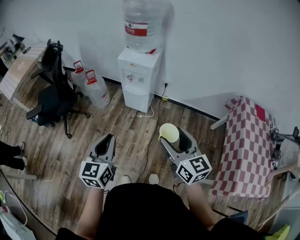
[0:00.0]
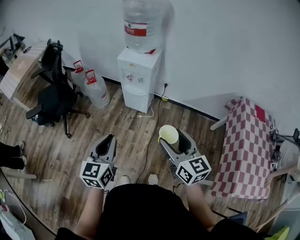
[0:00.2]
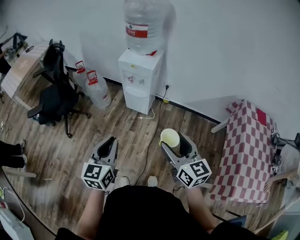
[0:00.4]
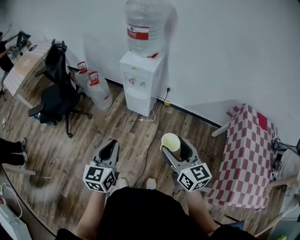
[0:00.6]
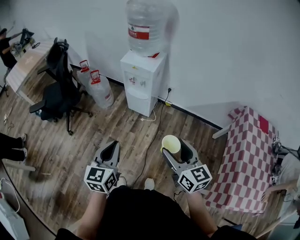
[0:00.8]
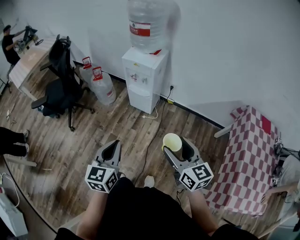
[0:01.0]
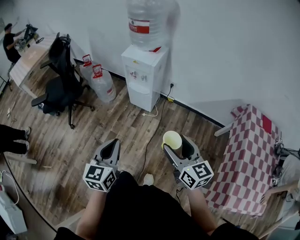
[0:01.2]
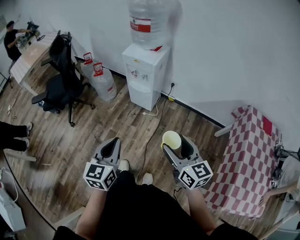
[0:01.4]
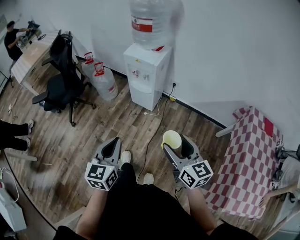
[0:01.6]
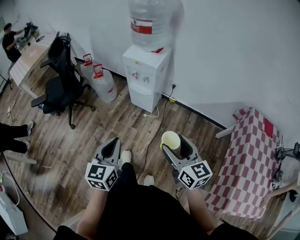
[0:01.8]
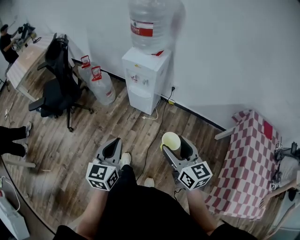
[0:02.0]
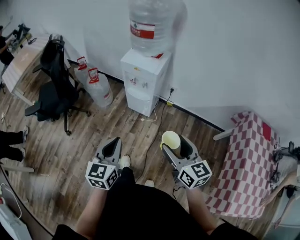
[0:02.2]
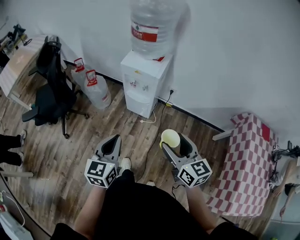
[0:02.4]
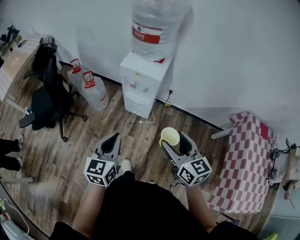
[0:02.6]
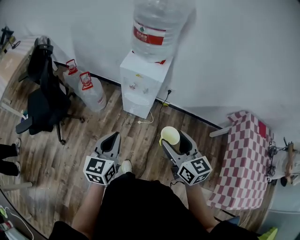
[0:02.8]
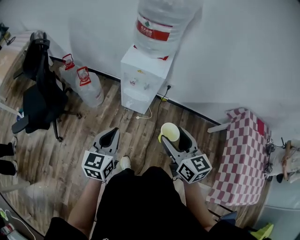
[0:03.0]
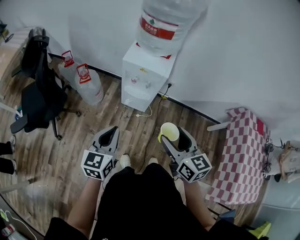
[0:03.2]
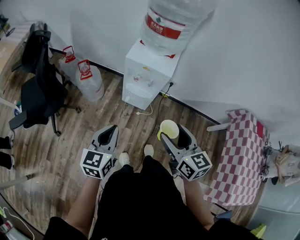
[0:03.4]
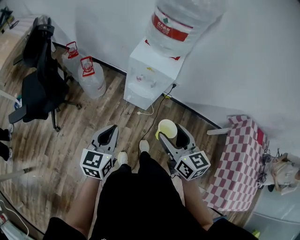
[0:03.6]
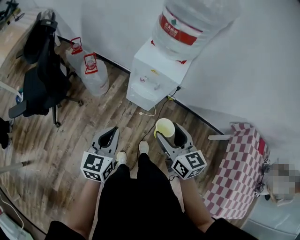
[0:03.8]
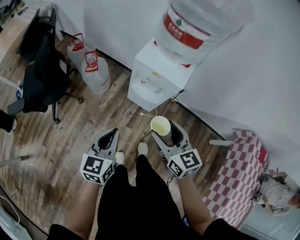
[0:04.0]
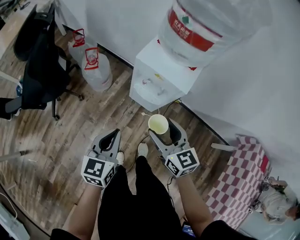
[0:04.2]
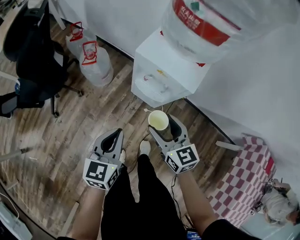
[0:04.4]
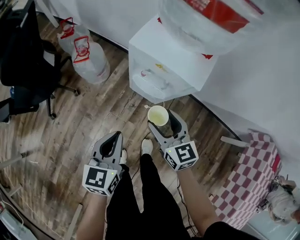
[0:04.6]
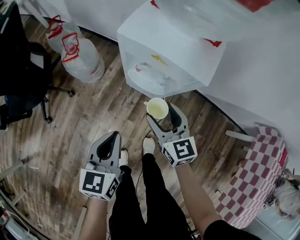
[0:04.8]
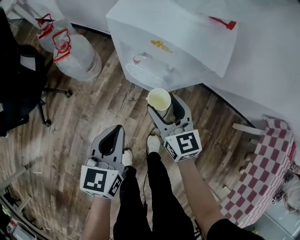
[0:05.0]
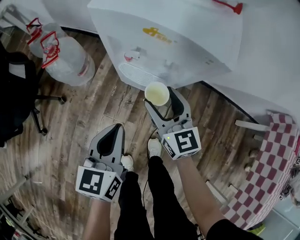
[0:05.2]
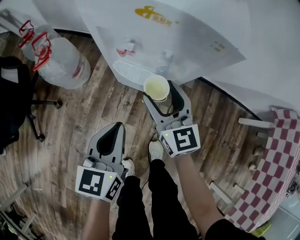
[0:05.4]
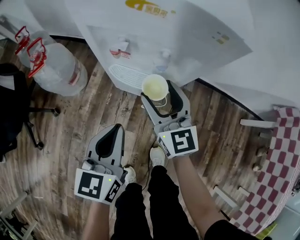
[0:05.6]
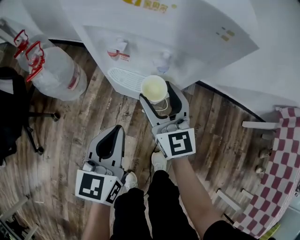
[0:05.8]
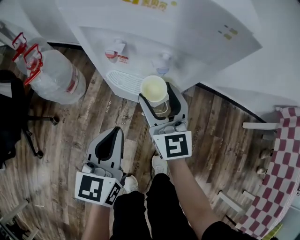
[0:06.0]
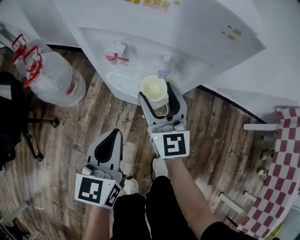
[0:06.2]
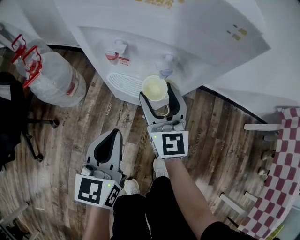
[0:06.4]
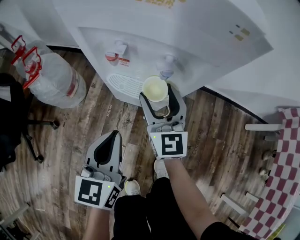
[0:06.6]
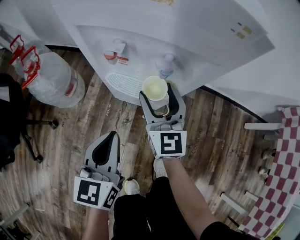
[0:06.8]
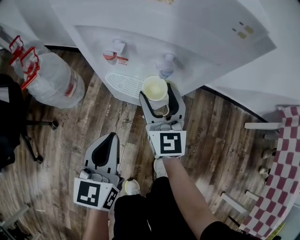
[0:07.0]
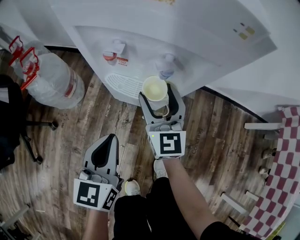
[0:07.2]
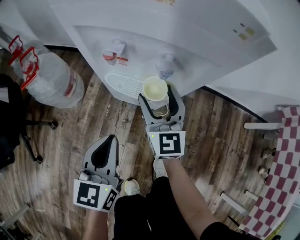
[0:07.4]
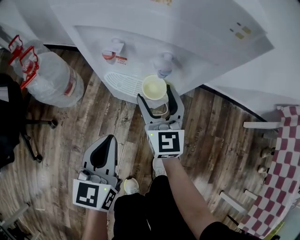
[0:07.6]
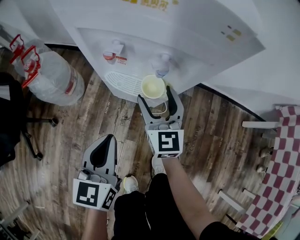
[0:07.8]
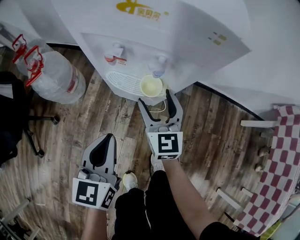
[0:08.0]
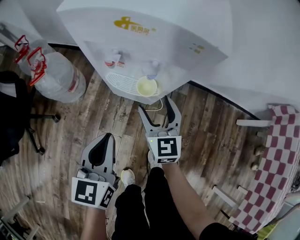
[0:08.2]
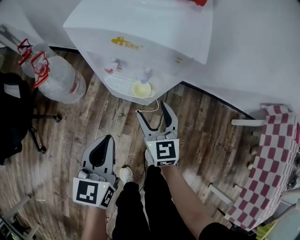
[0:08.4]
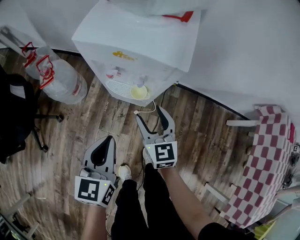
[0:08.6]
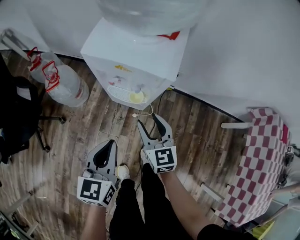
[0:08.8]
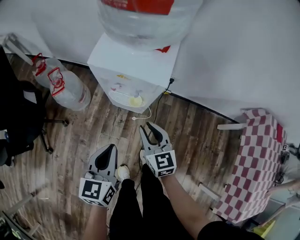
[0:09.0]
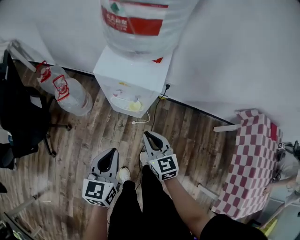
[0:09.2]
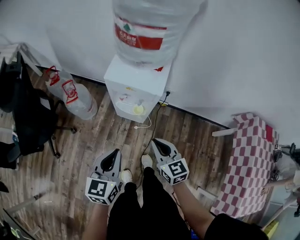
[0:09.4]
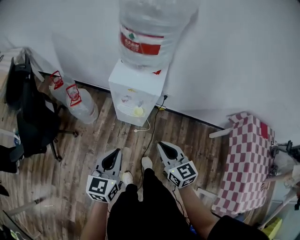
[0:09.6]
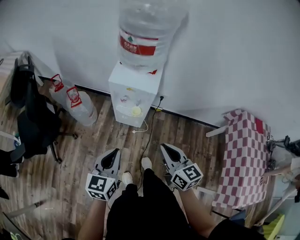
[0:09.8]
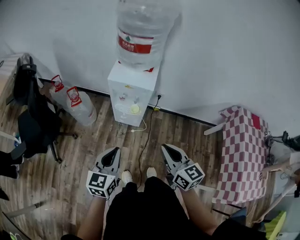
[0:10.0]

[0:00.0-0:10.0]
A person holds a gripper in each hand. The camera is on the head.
0:00.0 to 0:01.4: The two grippers go about 10 cm to the right.
0:01.4 to 0:02.8: The grippers both shift forward and to the left by about 25 cm.
0:02.8 to 0:04.2: The left gripper goes approximately 15 cm forward and downward. Meanwhile the right gripper shifts approximately 25 cm forward, downward and to the left.
0:04.2 to 0:05.8: The right gripper shifts some 35 cm downward and forward, and turns by some 30 degrees; the left gripper is displaced downward by about 30 cm.
0:05.8 to 0:07.2: The right gripper ends up some 5 cm from where it was.
0:07.2 to 0:08.6: The right gripper shifts roughly 15 cm upward and backward; the left gripper shifts roughly 15 cm upward.
0:08.6 to 0:10.0: Both grippers travel together upward and backward, roughly 35 cm. The right gripper closes.

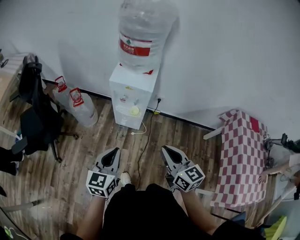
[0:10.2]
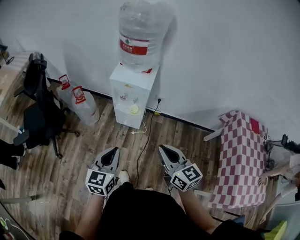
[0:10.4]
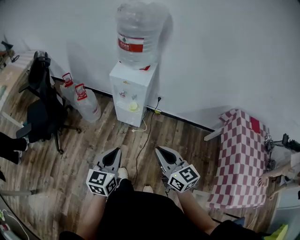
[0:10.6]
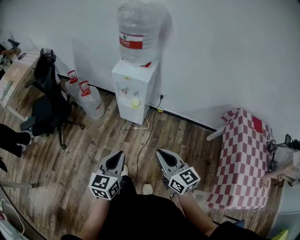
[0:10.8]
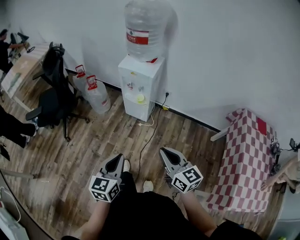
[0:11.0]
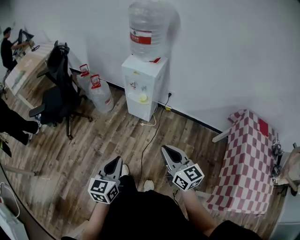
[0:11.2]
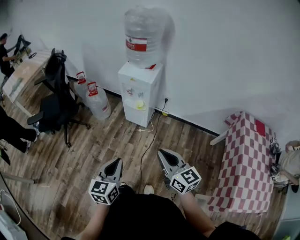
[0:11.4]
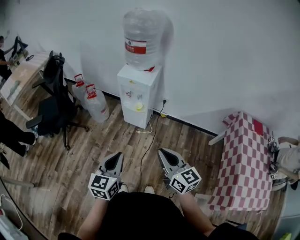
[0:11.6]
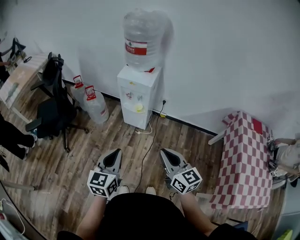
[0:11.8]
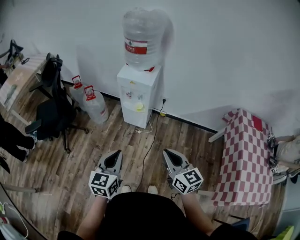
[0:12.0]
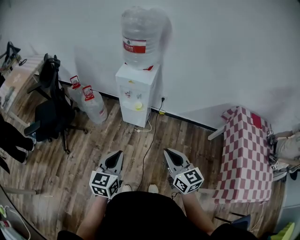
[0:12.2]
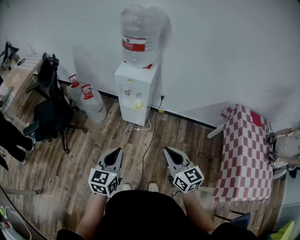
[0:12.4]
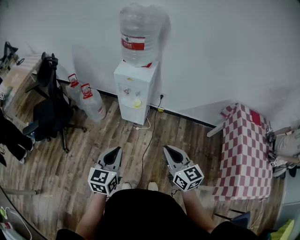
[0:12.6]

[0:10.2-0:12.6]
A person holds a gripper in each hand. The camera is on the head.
0:10.2 to 0:11.4: The grippers both shift backward by roughly 20 cm.
0:11.4 to 0:12.6: The left gripper goes some 5 cm forward.

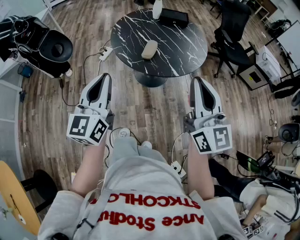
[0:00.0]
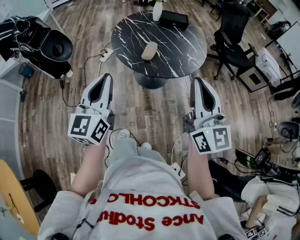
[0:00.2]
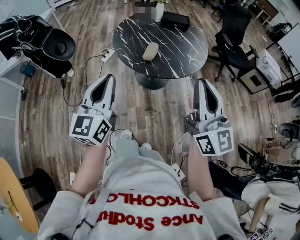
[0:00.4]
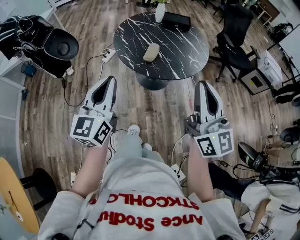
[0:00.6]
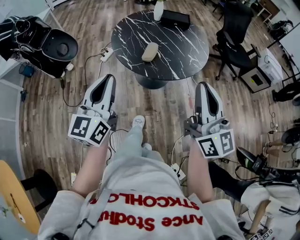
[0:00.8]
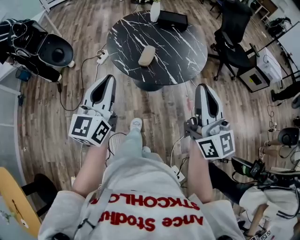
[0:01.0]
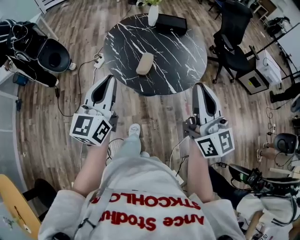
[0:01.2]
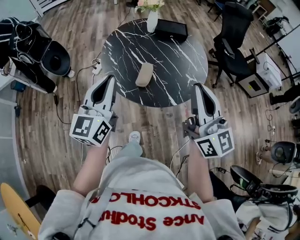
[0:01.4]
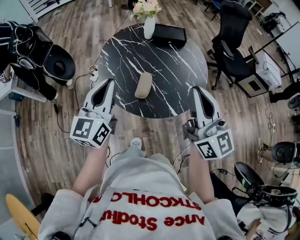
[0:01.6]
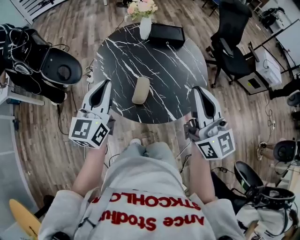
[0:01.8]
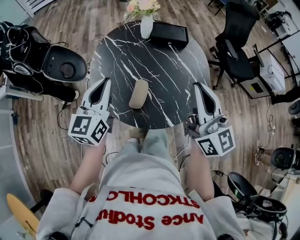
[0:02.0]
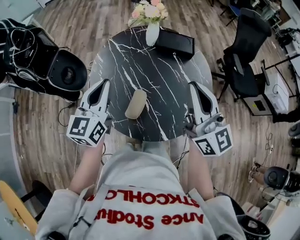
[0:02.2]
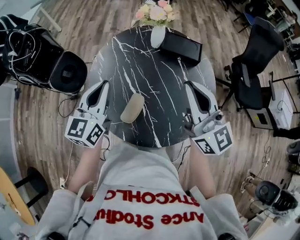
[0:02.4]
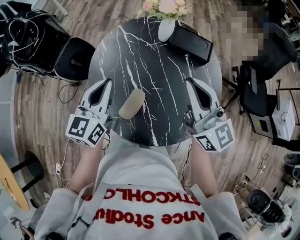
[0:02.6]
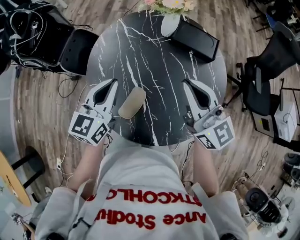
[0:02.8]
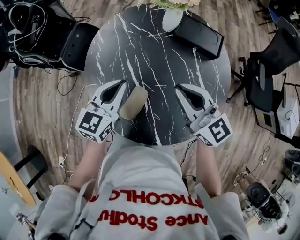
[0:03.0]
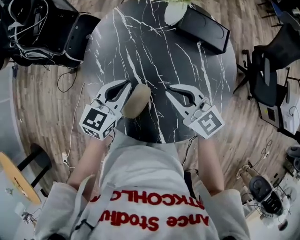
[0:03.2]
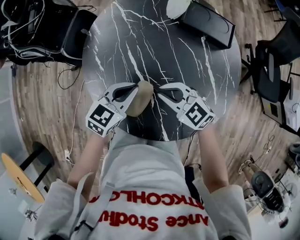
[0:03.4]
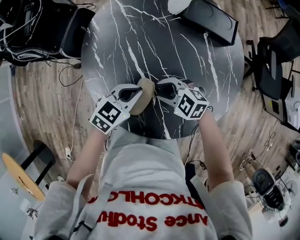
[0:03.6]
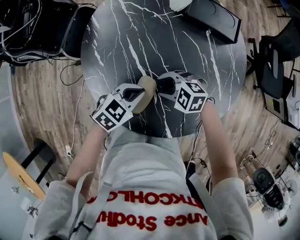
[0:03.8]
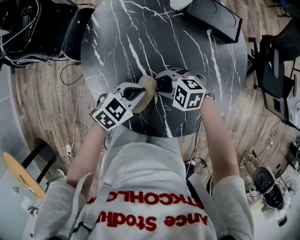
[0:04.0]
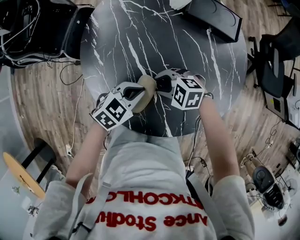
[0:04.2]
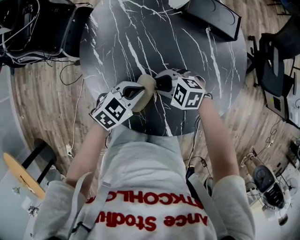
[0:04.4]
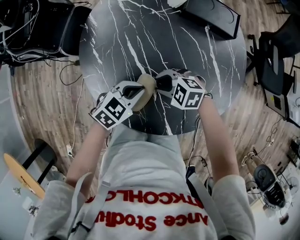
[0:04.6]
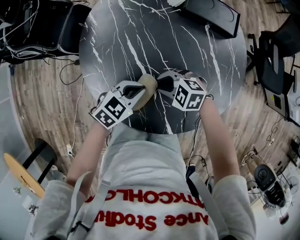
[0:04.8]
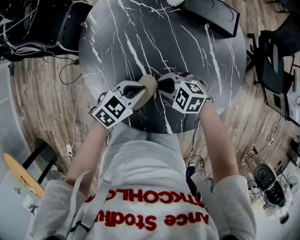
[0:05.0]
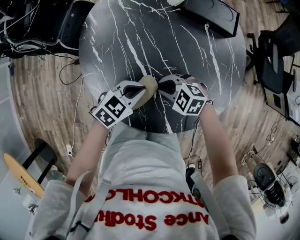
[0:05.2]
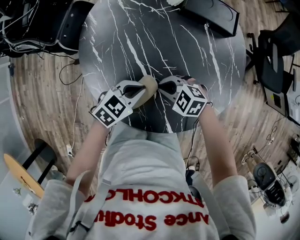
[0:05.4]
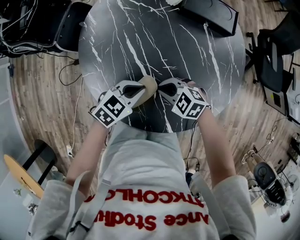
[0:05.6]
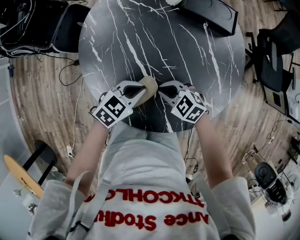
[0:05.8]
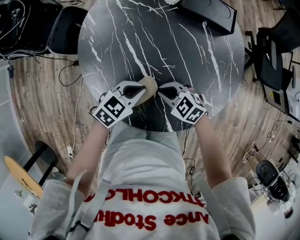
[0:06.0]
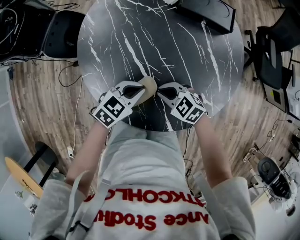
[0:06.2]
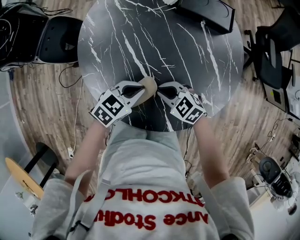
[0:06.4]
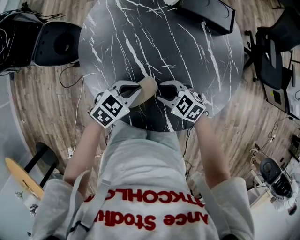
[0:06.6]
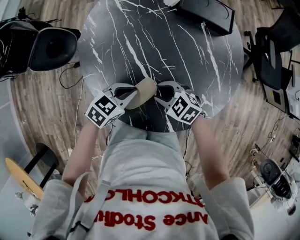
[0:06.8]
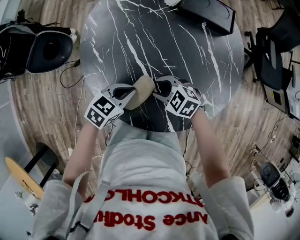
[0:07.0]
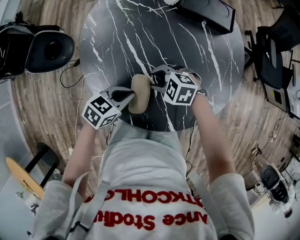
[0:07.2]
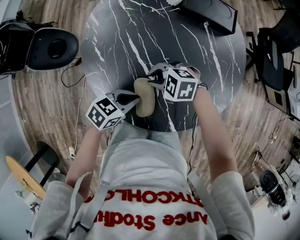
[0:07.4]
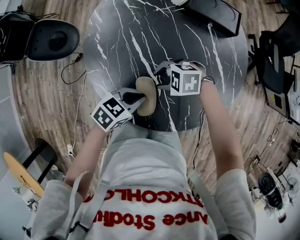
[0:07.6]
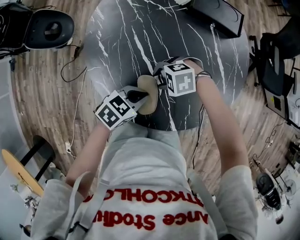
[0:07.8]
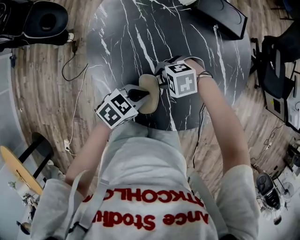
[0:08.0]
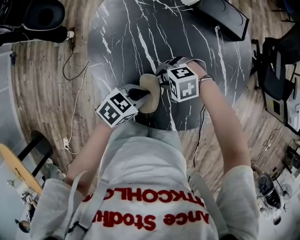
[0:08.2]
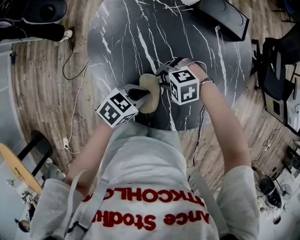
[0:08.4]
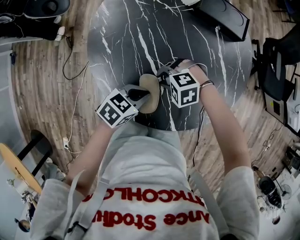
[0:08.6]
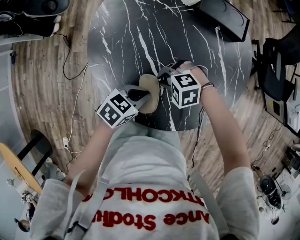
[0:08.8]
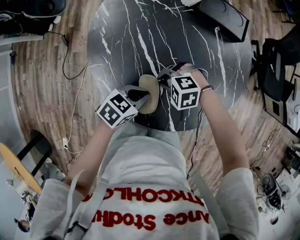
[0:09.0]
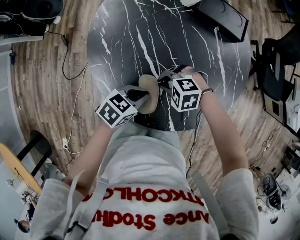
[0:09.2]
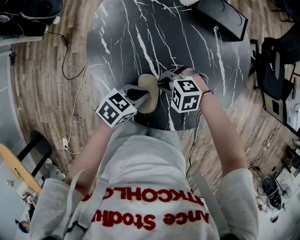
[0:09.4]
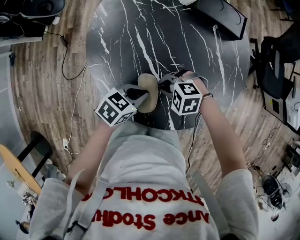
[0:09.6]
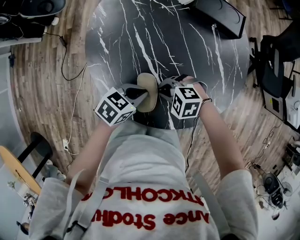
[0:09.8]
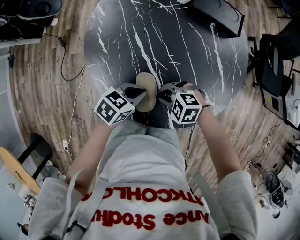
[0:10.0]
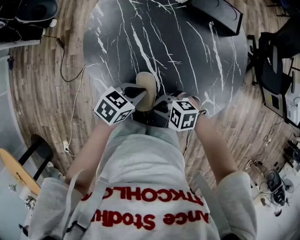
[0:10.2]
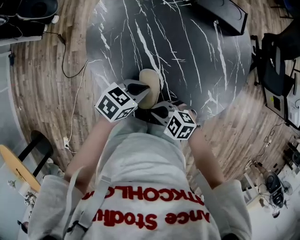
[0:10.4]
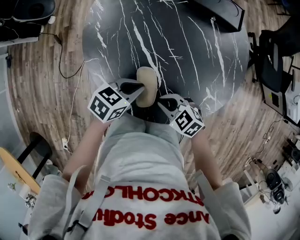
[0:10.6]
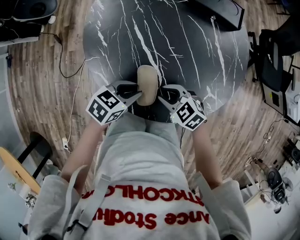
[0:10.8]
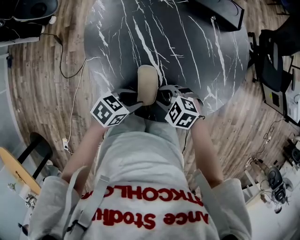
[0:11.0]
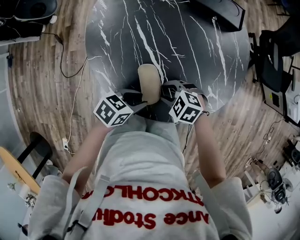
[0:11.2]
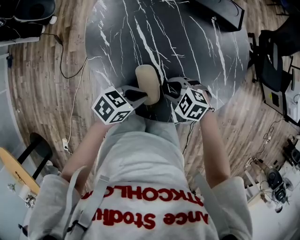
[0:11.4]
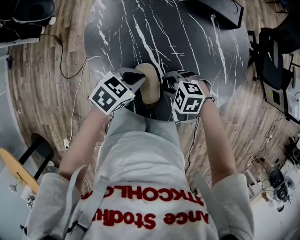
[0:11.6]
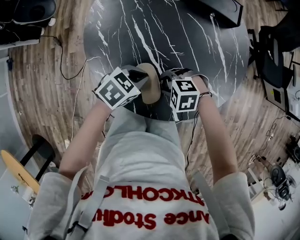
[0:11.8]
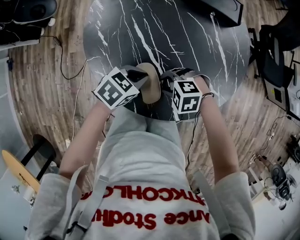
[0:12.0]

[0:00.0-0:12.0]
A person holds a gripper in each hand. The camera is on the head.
0:00.0 to 0:01.6: Both grippers travel together forward, about 25 cm.
0:01.6 to 0:03.0: The left gripper shifts approximately 30 cm forward, downward and to the right, and swivels some 20 degrees; the right gripper shifts some 35 cm forward and downward, and turns by approximately 40 degrees.
0:03.0 to 0:04.4: The left gripper heads downward, covering approximately 15 cm, and turns by some 40 degrees; the right gripper goes approximately 25 cm downward, points its fingers approximately 40 degrees further downward, and opens its fingers.
0:04.4 to 0:06.0: The right gripper turns by roughly 20 degrees, and closes.
0:06.0 to 0:07.6: The right gripper changes its angle by about 30 degrees, and opens its fingers.
0:07.6 to 0:09.0: The right gripper closes its fingers.
0:09.0 to 0:10.4: The right gripper shifts by some 15 cm, and rotates roughly 30 degrees.
0:10.4 to 0:12.0: The left gripper opens, then closes again; the right gripper ends up roughly 10 cm from where it was, swivels some 30 degrees, and opens up.
